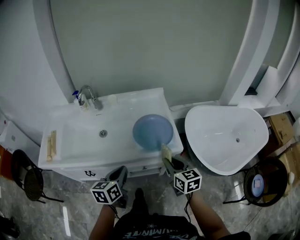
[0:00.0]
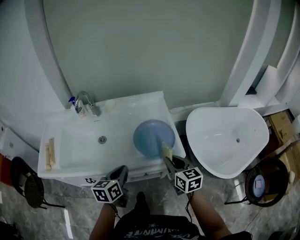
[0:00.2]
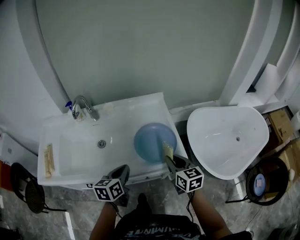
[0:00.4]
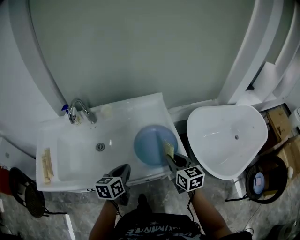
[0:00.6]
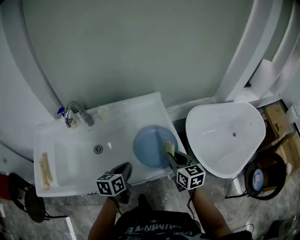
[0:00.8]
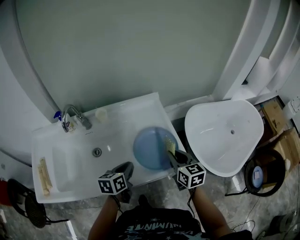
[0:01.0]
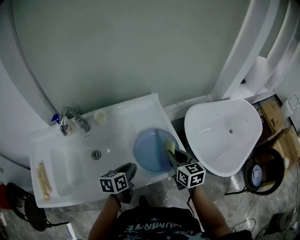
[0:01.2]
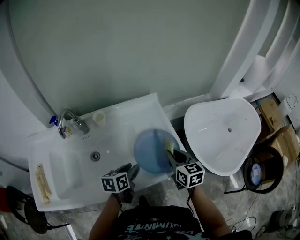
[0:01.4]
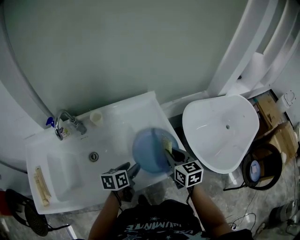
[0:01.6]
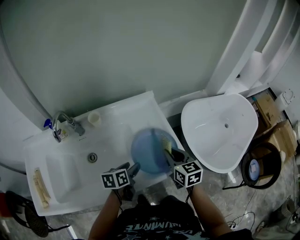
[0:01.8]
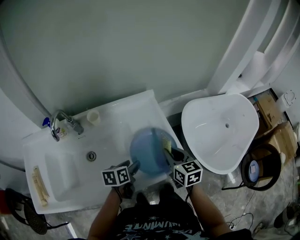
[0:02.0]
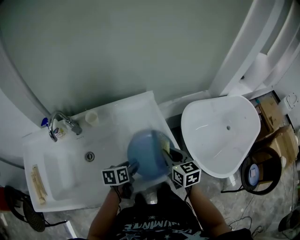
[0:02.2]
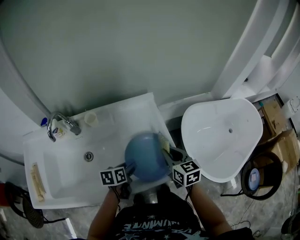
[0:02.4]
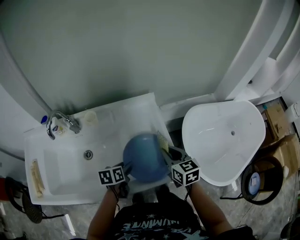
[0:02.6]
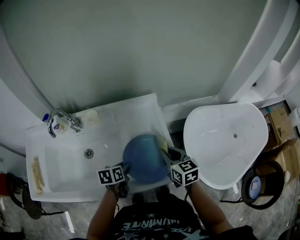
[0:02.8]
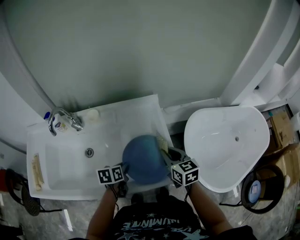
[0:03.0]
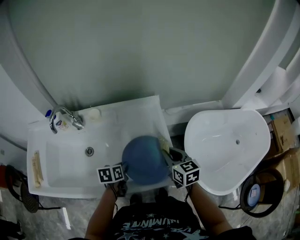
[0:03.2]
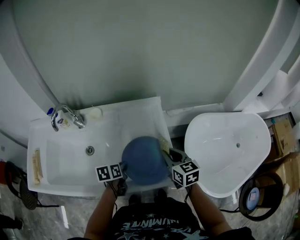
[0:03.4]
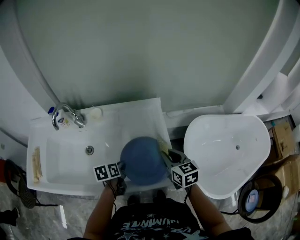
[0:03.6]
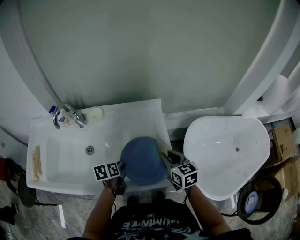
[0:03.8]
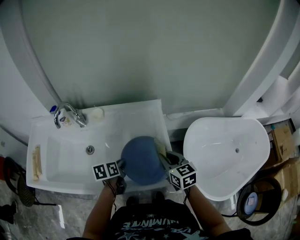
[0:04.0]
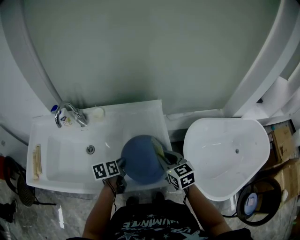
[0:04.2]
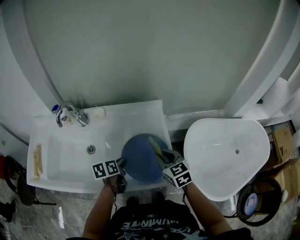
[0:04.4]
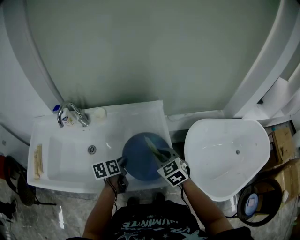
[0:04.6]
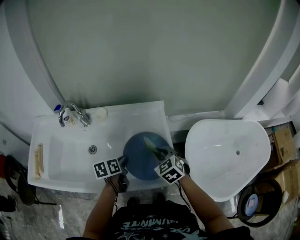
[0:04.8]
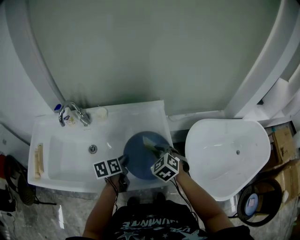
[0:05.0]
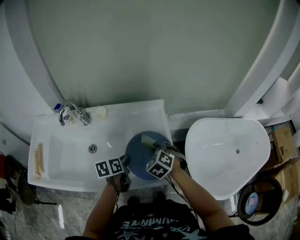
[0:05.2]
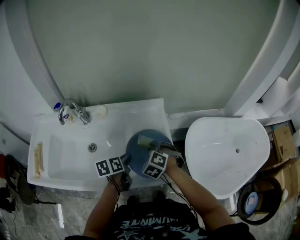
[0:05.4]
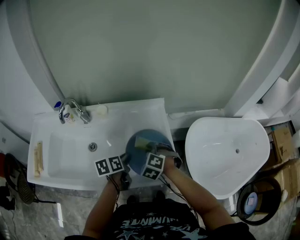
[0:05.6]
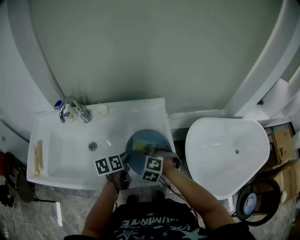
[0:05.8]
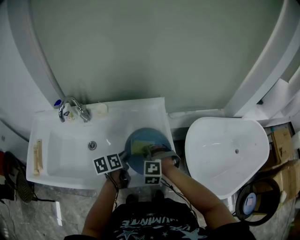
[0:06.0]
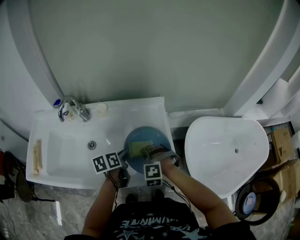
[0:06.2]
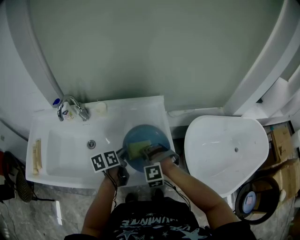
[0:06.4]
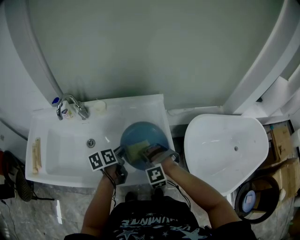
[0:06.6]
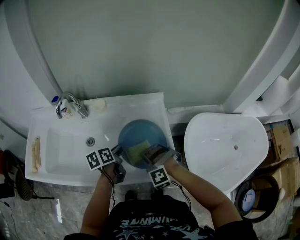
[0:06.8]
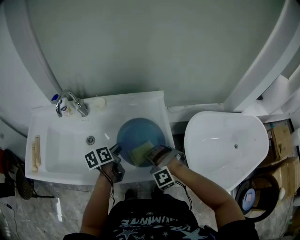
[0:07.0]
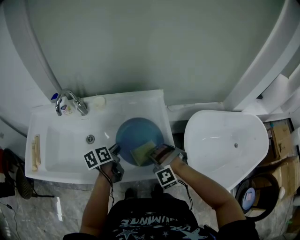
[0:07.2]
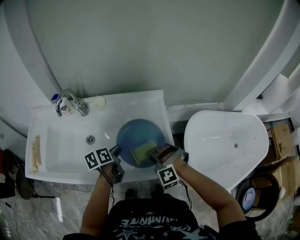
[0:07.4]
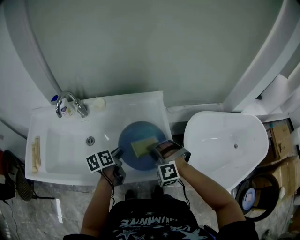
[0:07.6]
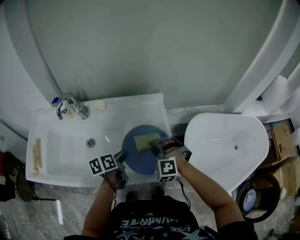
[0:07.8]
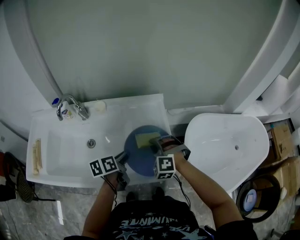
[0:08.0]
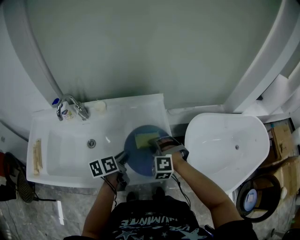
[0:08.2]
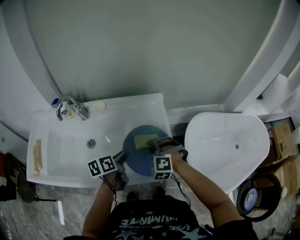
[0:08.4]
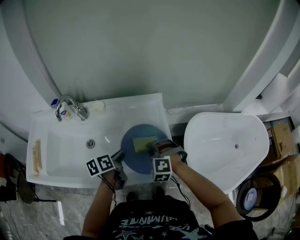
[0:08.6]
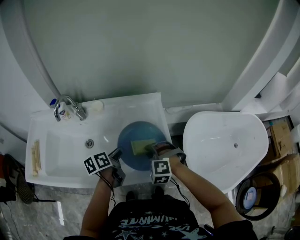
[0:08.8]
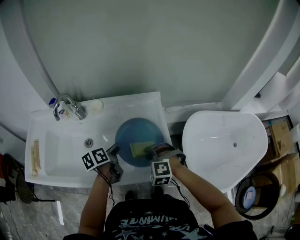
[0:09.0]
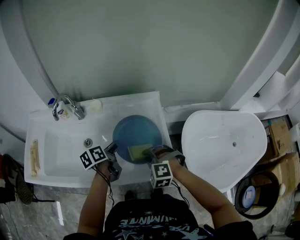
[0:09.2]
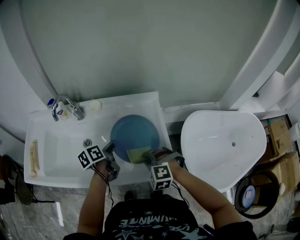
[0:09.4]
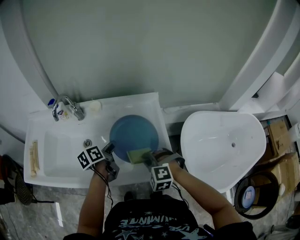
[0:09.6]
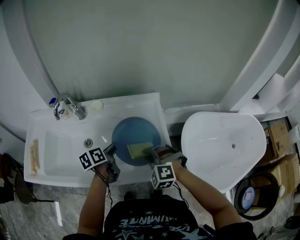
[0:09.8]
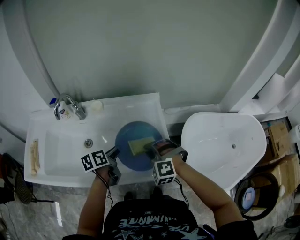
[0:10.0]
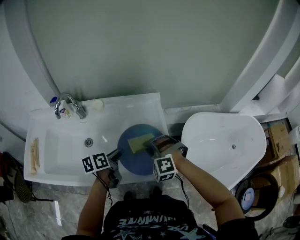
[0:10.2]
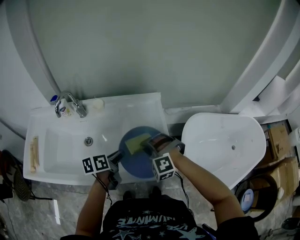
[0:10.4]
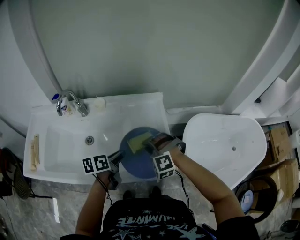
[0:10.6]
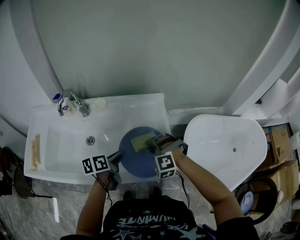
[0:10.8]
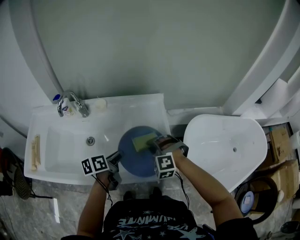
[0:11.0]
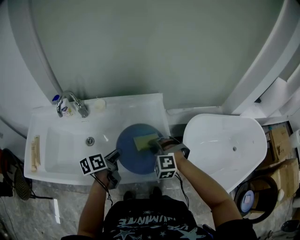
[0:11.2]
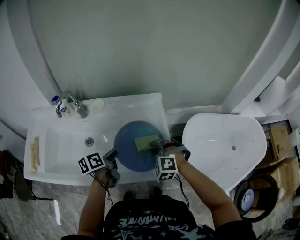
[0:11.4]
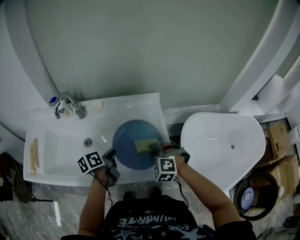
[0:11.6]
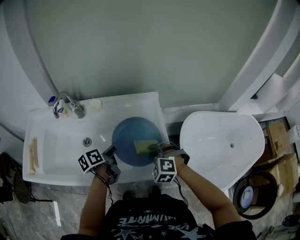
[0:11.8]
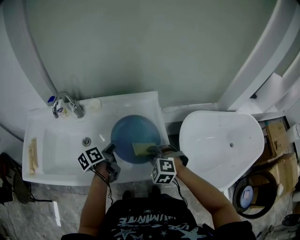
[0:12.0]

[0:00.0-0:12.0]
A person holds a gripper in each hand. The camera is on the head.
0:00.0 to 0:01.6: The left gripper shifts about 20 cm forward and downward, swivels roughly 30 degrees, and opens up. Meanwhile the right gripper is displaced forward by about 15 cm.
0:01.6 to 0:03.0: The left gripper shifts by roughly 5 cm, and closes; the right gripper is displaced forward by about 5 cm.
0:03.0 to 0:04.4: The grippers move only a little.
0:04.4 to 0:06.0: The right gripper shifts roughly 10 cm to the left and downward, and twists approximately 70 degrees counterclockwise, seen from behind.
0:07.6 to 0:10.4: There are only small adjustments of the grippers.
0:10.4 to 0:12.0: The right gripper changes place by some 5 cm, and rotates approximately 30 degrees.

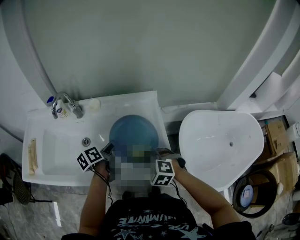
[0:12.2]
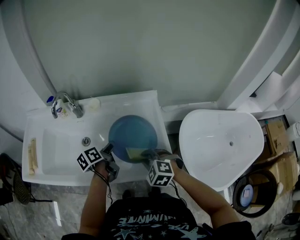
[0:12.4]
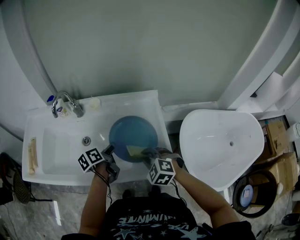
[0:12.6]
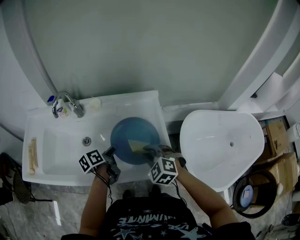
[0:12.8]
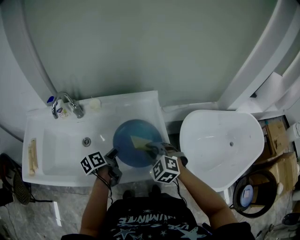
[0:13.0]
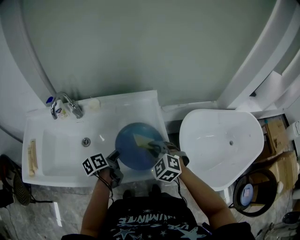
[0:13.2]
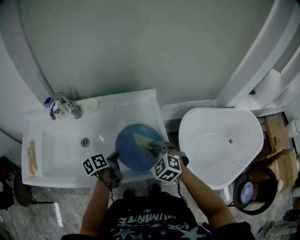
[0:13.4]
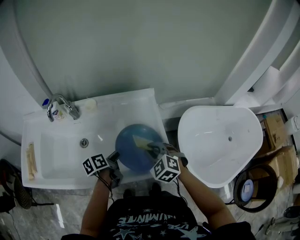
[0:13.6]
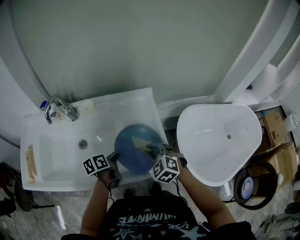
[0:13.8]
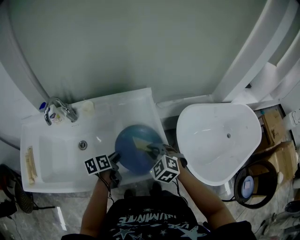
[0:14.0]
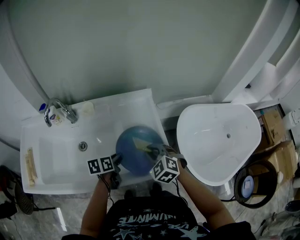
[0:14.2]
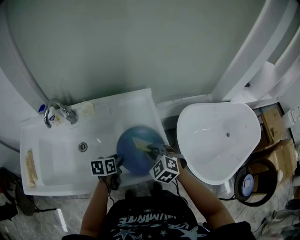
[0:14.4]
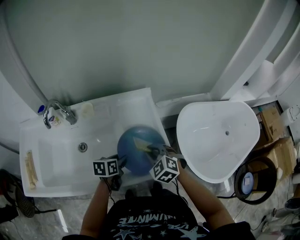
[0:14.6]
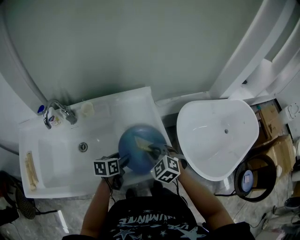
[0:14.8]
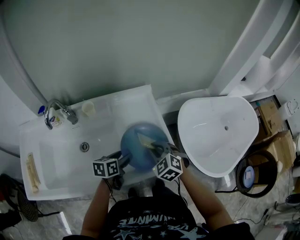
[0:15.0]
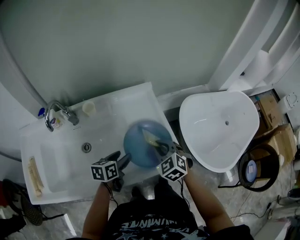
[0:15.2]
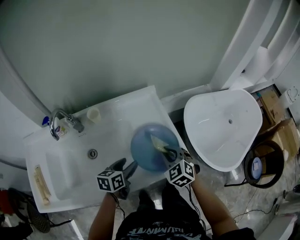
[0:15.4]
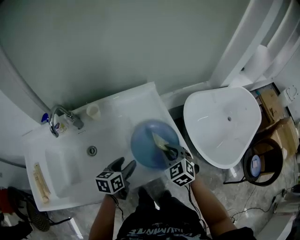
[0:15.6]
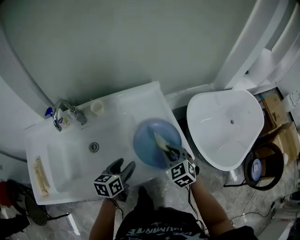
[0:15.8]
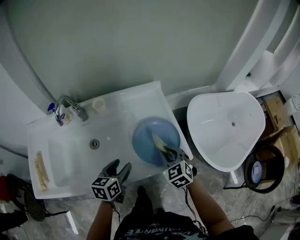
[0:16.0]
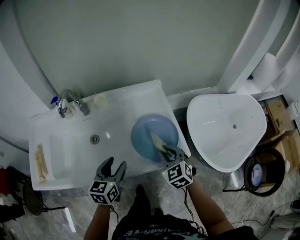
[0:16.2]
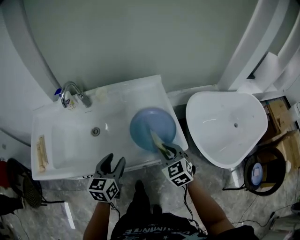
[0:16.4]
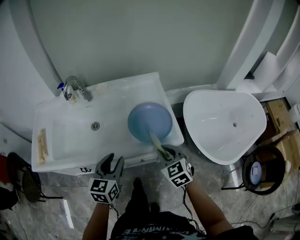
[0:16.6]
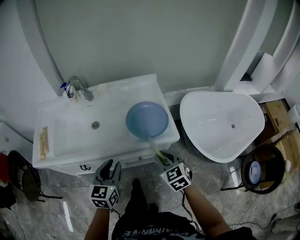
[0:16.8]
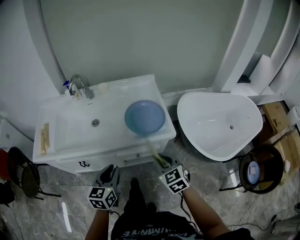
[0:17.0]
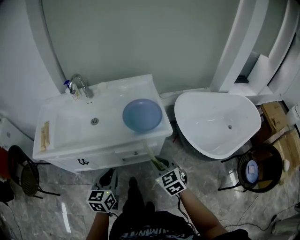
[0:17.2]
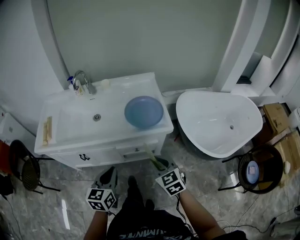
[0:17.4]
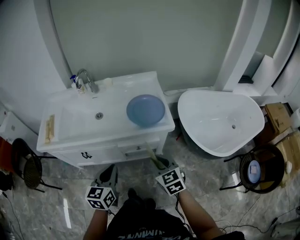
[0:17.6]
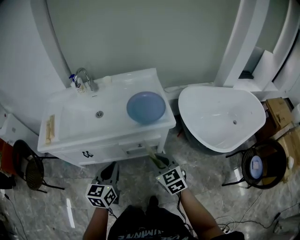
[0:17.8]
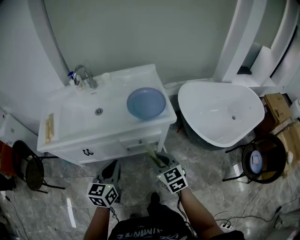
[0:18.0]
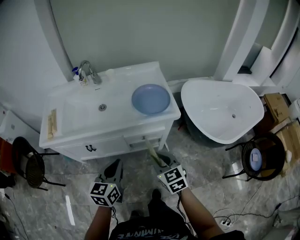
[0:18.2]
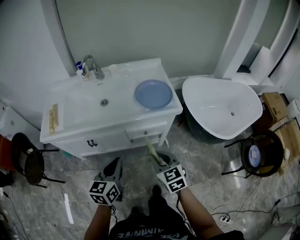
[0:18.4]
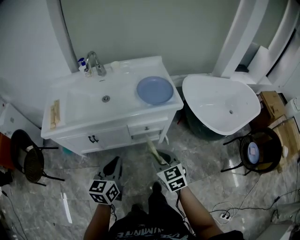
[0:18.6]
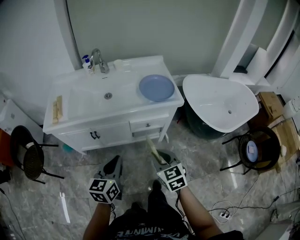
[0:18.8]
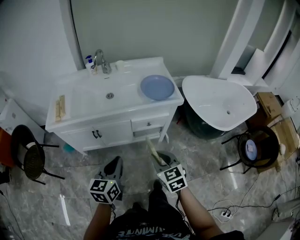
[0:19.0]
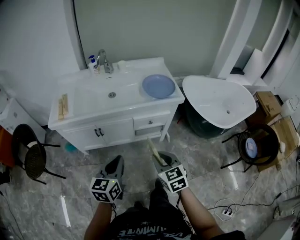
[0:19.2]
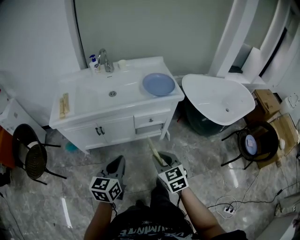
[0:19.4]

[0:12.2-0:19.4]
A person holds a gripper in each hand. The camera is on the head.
0:12.2 to 0:13.6: The left gripper changes place by some 5 cm.
0:13.6 to 0:15.0: The left gripper changes its angle by some 30 degrees, and opens its fingers.
0:15.0 to 0:16.6: The right gripper moves backward, some 15 cm, and swivels roughly 20 degrees, while the left gripper shifts approximately 20 cm backward and upward, and rotates approximately 40 degrees.
0:16.6 to 0:18.0: Both grippers travel together backward, some 20 cm. The left gripper closes.
0:18.0 to 0:19.4: The two grippers go roughly 25 cm backward and to the left.

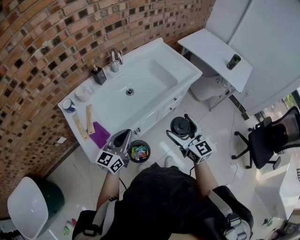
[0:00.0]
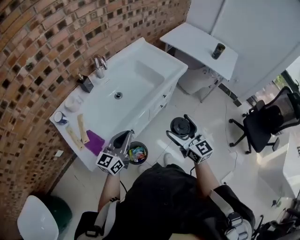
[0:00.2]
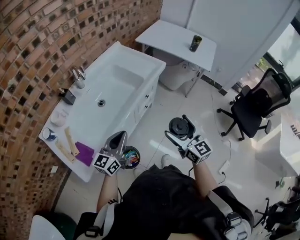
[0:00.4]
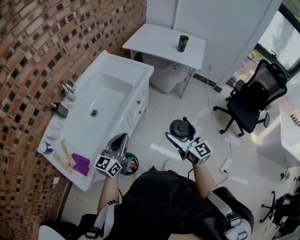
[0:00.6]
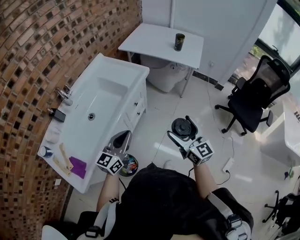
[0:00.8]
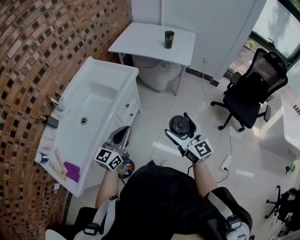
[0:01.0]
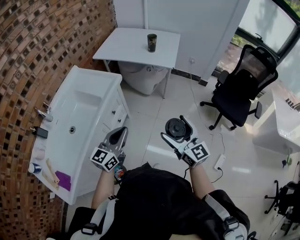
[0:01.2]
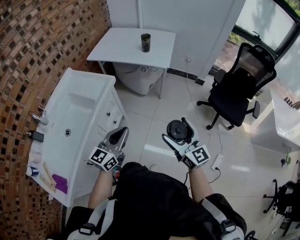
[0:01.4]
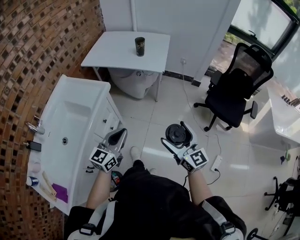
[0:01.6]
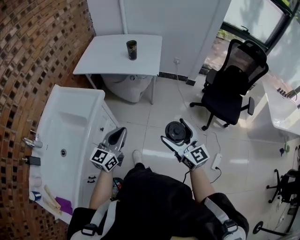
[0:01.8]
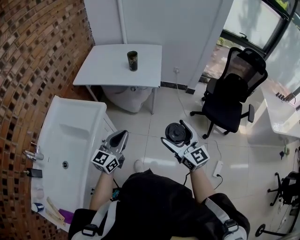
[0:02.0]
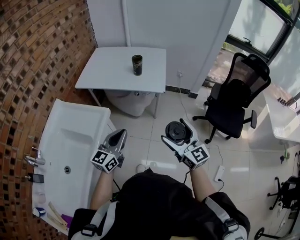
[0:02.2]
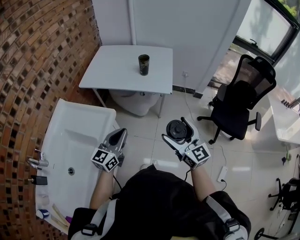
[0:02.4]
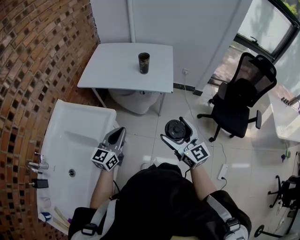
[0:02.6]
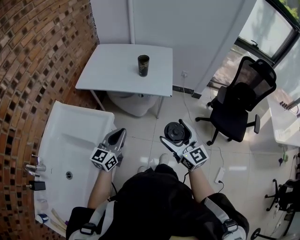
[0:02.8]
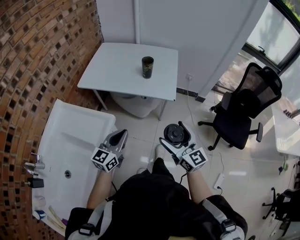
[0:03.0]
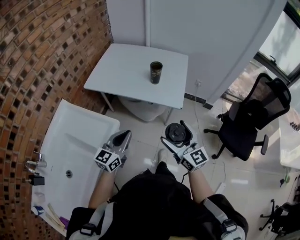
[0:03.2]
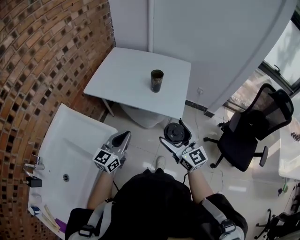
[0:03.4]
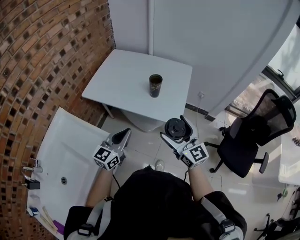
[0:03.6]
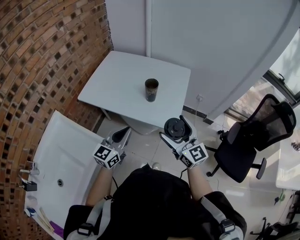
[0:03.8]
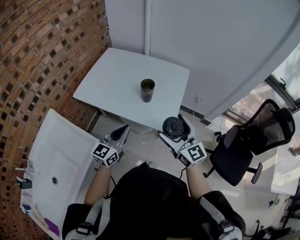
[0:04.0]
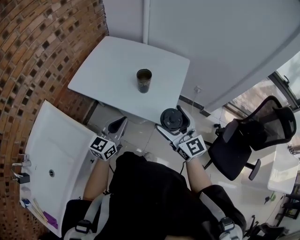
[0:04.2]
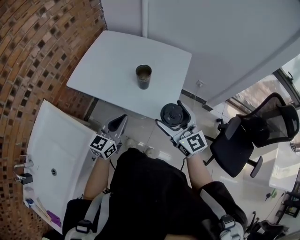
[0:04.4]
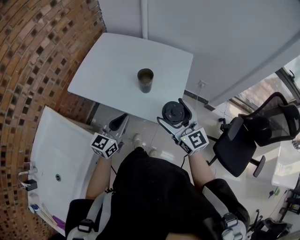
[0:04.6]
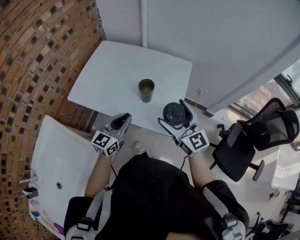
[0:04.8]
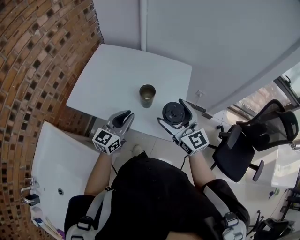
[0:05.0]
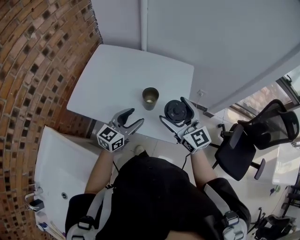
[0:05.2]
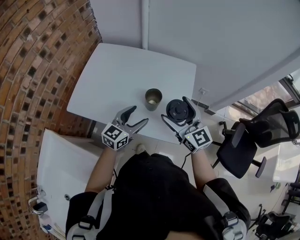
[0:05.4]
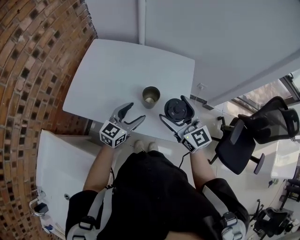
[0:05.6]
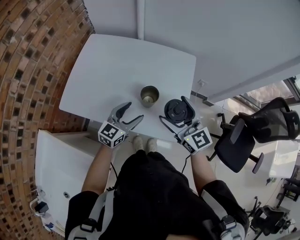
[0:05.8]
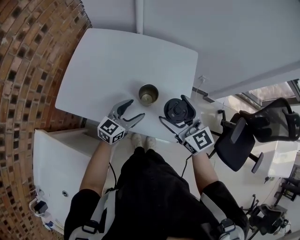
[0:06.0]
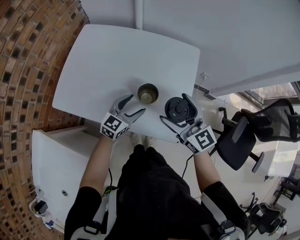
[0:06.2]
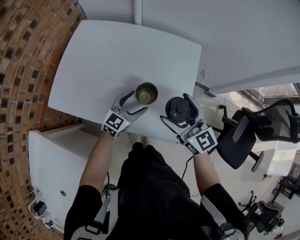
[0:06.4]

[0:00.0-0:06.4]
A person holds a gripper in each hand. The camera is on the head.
0:00.0 to 0:01.6: The left gripper changes place by some 40 cm, and changes its angle by approximately 30 degrees. Meanwhile the right gripper ends up roughly 40 cm from where it was, and changes its angle by about 30 degrees.
0:01.6 to 0:03.2: Both grippers move forward, approximately 30 cm.
0:03.2 to 0:04.8: The grippers both shift forward by about 25 cm.
0:04.8 to 0:06.4: The left gripper goes roughly 20 cm downward and forward, rotates some 20 degrees, and opens; the right gripper shifts approximately 15 cm forward and downward.
